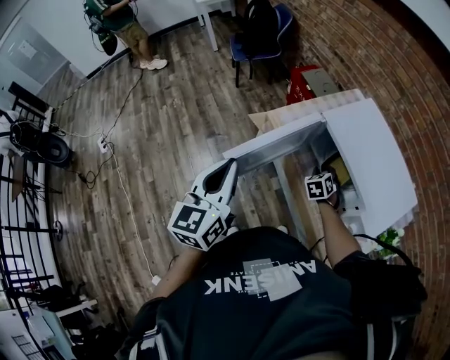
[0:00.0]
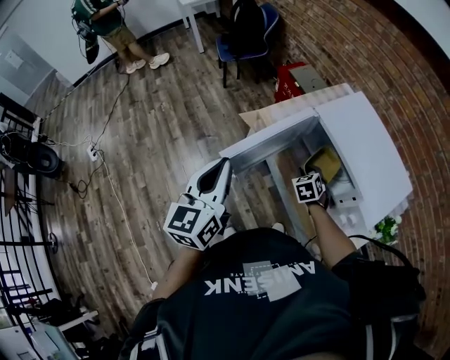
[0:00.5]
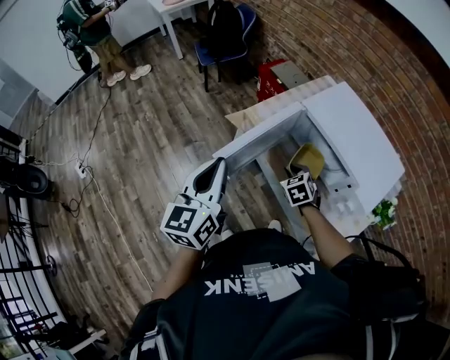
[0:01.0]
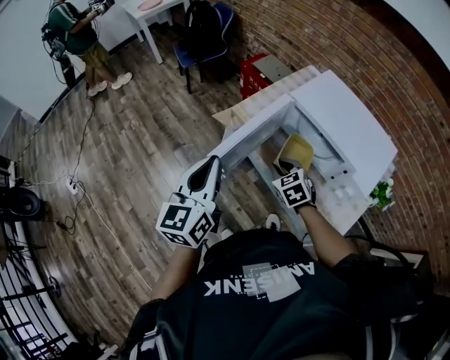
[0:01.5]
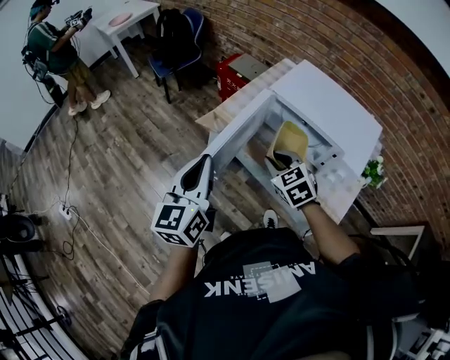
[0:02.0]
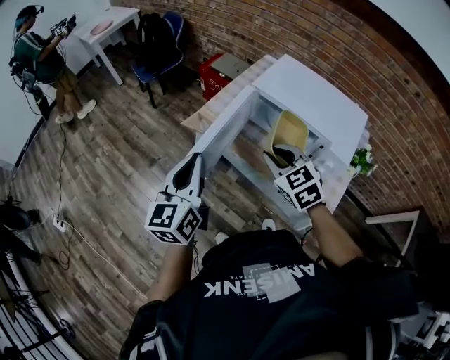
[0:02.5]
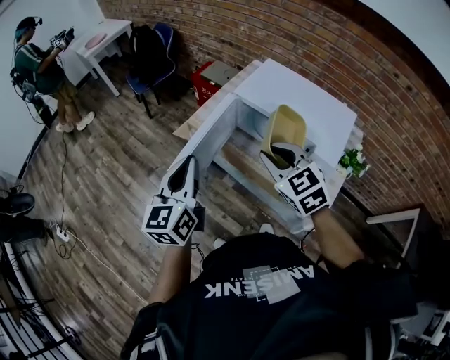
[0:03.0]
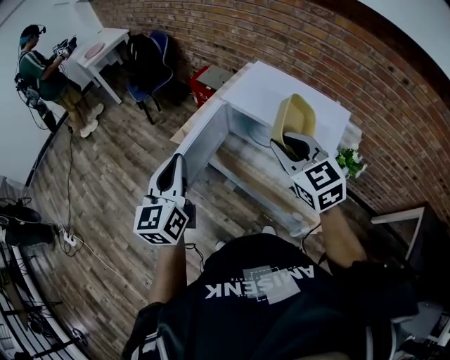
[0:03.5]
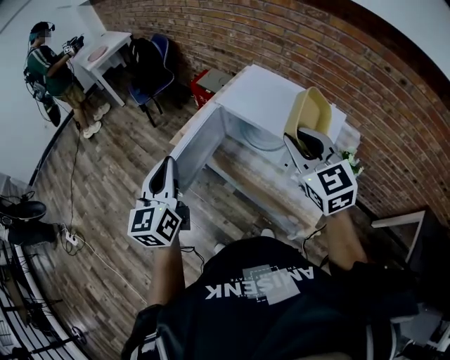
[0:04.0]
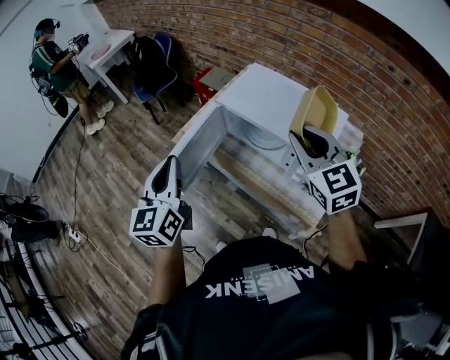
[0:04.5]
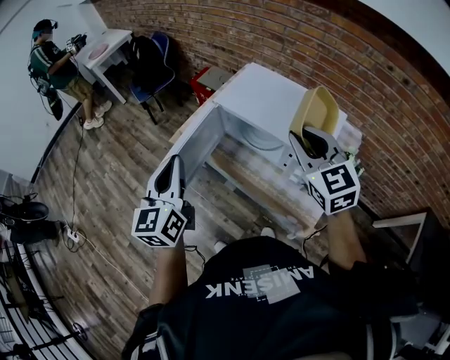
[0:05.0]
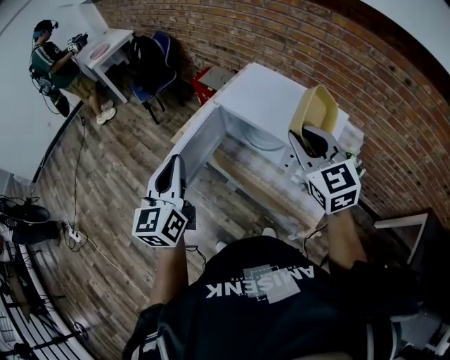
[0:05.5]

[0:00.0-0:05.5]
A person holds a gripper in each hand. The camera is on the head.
0:00.0 to 0:02.0: The right gripper shifts approximately 25 cm upward, backward and to the left.
0:02.0 to 0:03.5: The right gripper moves upward and to the right, approximately 25 cm. The left gripper heads to the right, covering approximately 10 cm.
0:03.5 to 0:05.5: The right gripper is displaced to the right by some 10 cm.

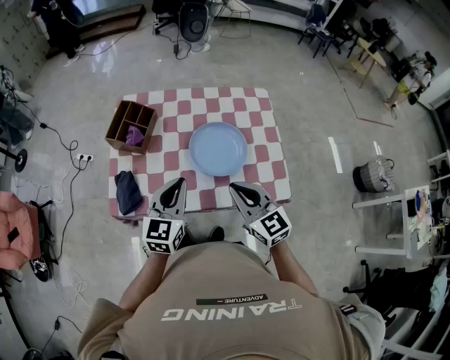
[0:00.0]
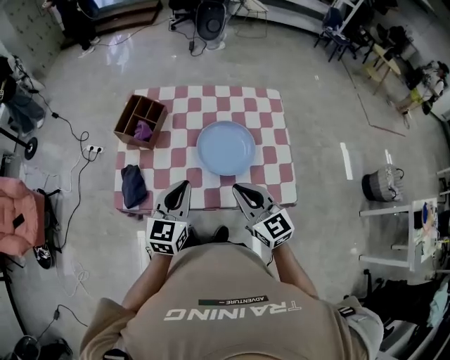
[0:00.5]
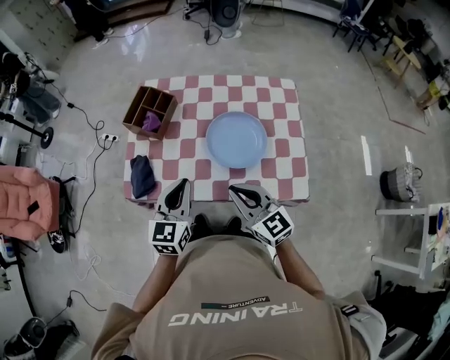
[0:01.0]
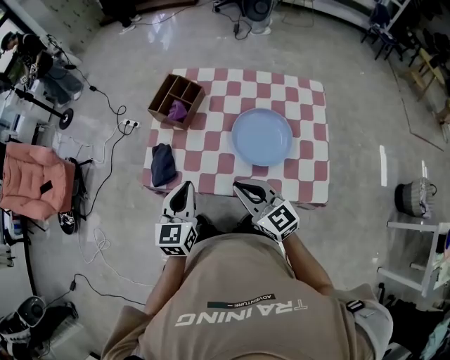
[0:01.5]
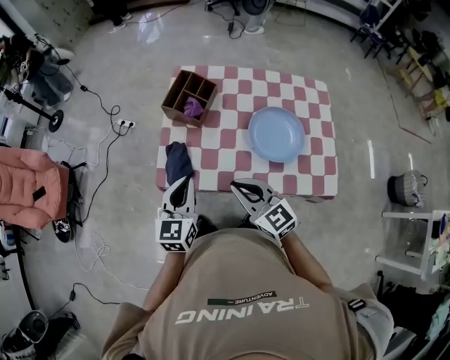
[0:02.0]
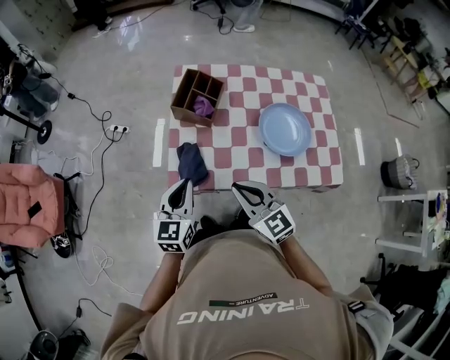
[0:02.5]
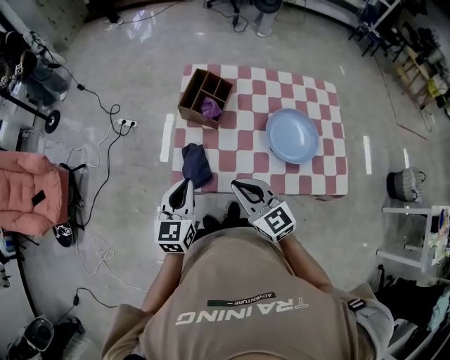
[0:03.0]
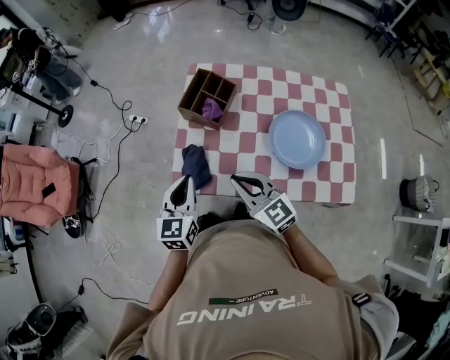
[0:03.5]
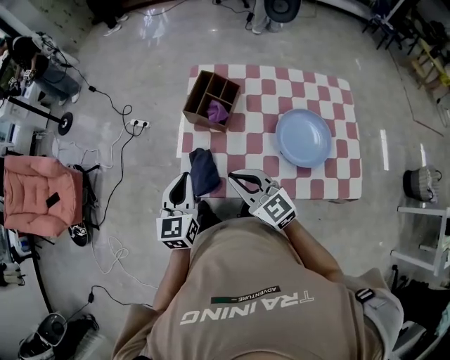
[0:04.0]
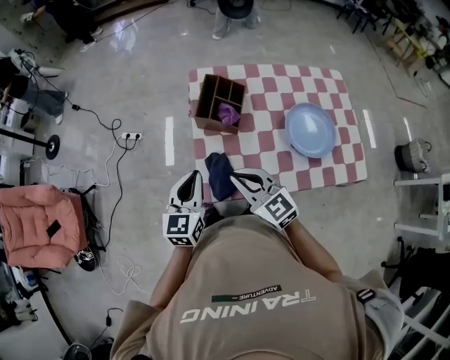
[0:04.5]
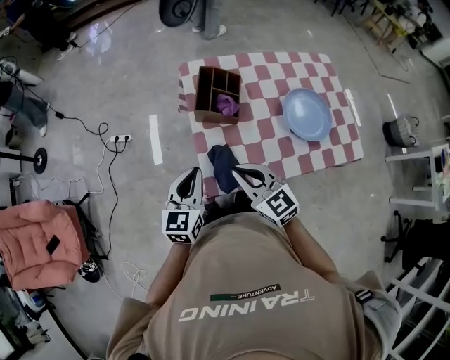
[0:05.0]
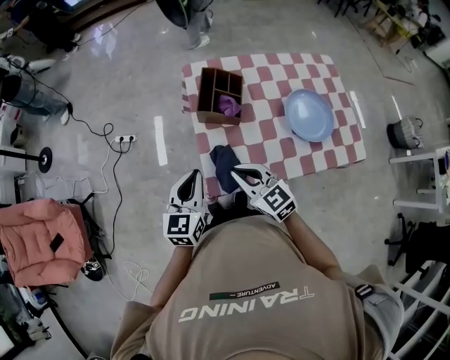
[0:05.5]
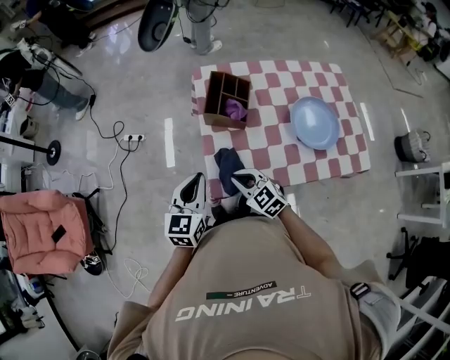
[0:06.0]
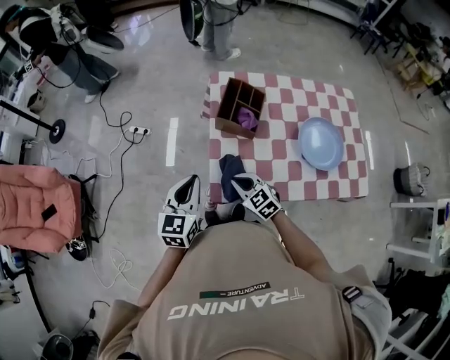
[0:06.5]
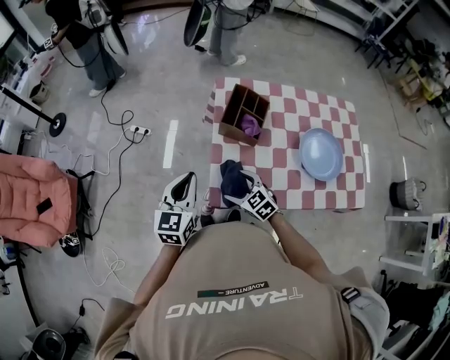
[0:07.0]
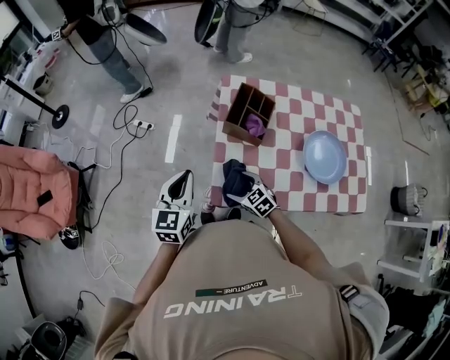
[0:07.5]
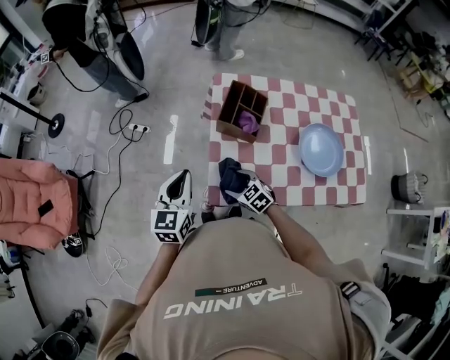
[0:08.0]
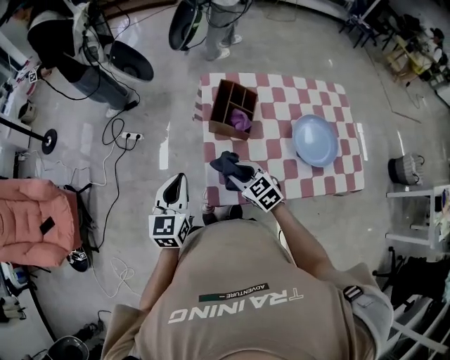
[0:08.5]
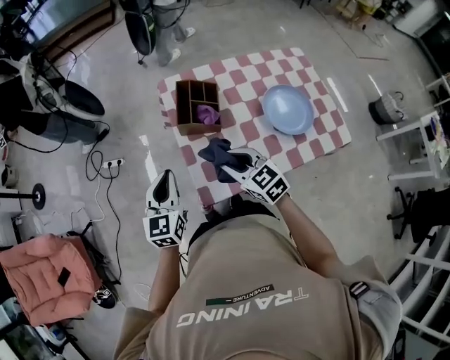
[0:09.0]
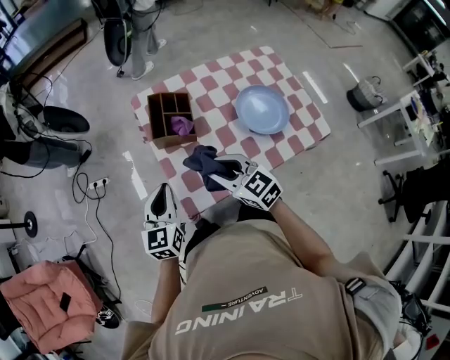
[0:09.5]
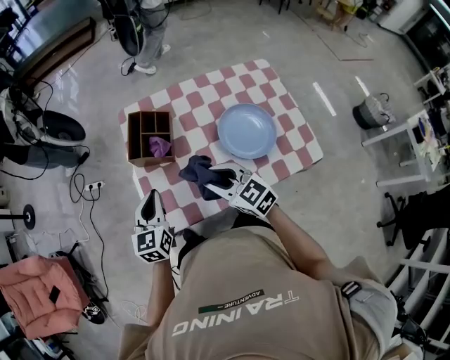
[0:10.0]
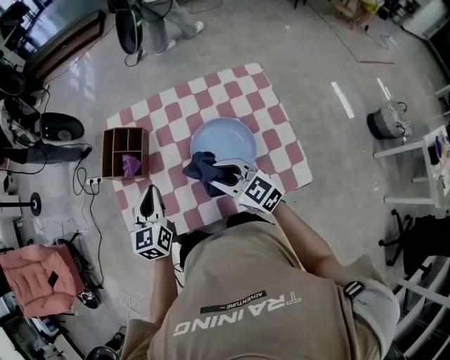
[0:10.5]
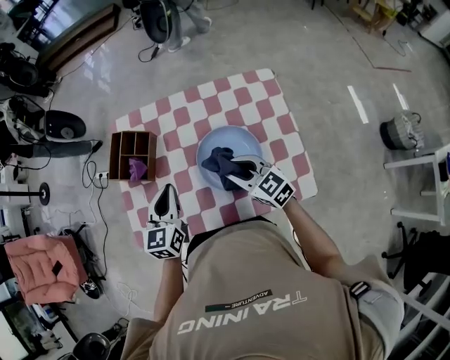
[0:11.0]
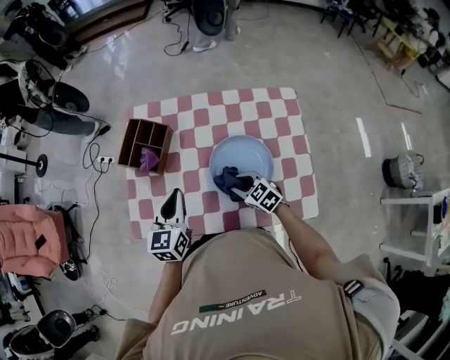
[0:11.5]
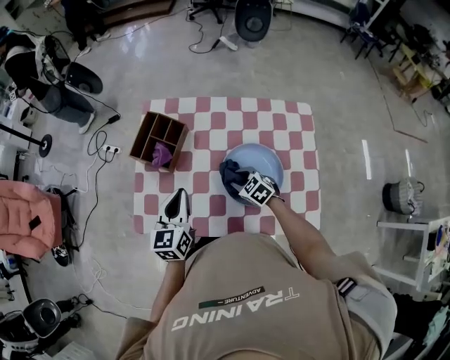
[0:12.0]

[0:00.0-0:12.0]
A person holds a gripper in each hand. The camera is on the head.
0:00.0 to 0:02.0: Both grippers travel together to the left, roughly 15 cm.
0:02.0 to 0:04.0: Both grippers move forward and to the left, some 10 cm.
0:04.0 to 0:06.0: The left gripper is displaced to the left by approximately 10 cm; the right gripper travels downward and to the left by approximately 15 cm, and swivels some 20 degrees.
0:06.0 to 0:08.0: The left gripper ends up roughly 5 cm from where it was. The right gripper travels downward by about 10 cm, and opens.
0:08.0 to 0:10.0: The left gripper is displaced to the right by roughly 15 cm; the right gripper goes about 25 cm upward and to the right, swivels approximately 30 degrees, and closes up.
0:10.0 to 0:12.0: The right gripper heads to the right and downward, covering about 25 cm, and changes its angle by some 30 degrees; the left gripper heads to the right, covering about 15 cm.

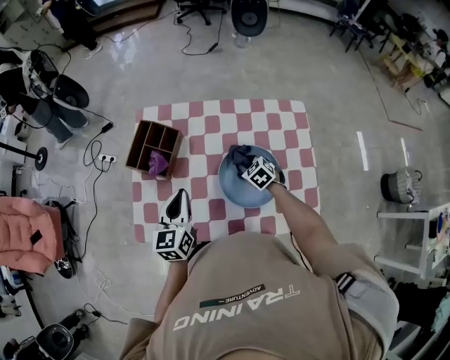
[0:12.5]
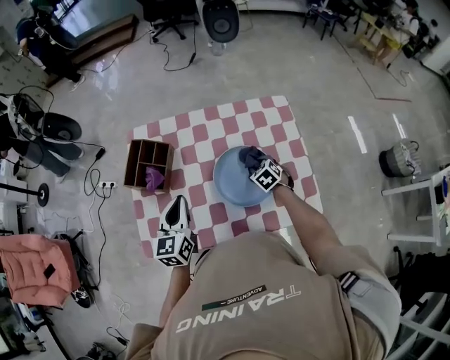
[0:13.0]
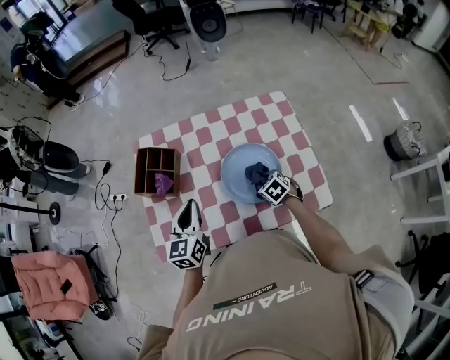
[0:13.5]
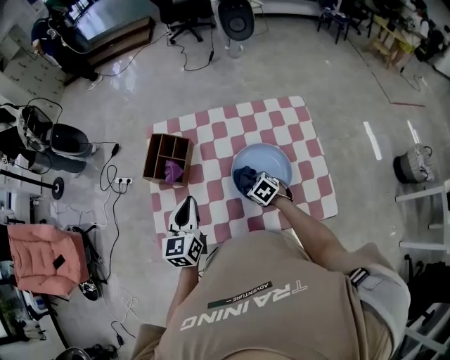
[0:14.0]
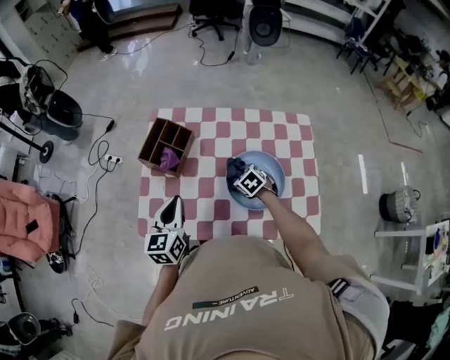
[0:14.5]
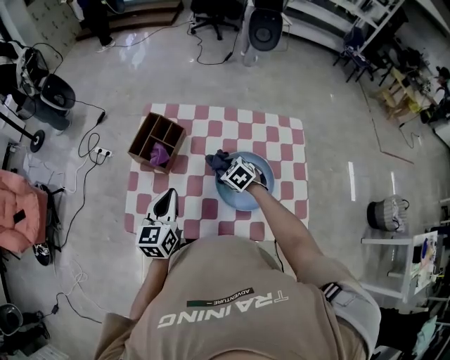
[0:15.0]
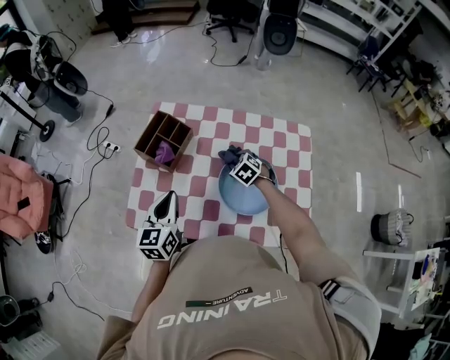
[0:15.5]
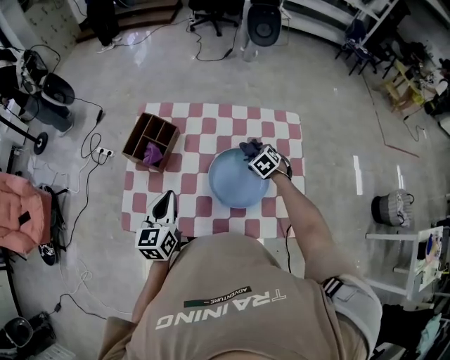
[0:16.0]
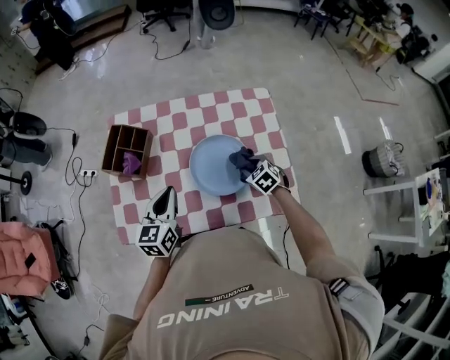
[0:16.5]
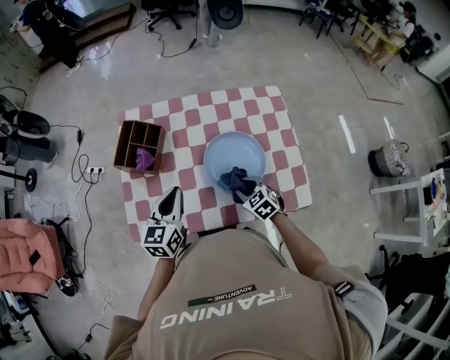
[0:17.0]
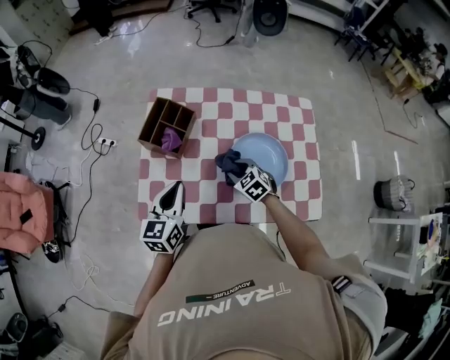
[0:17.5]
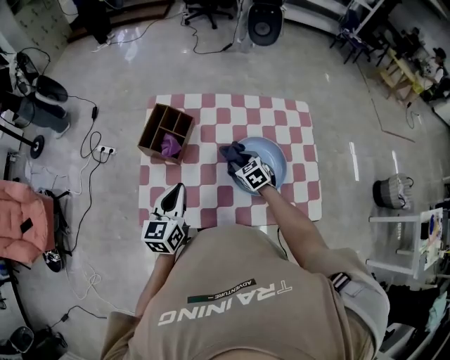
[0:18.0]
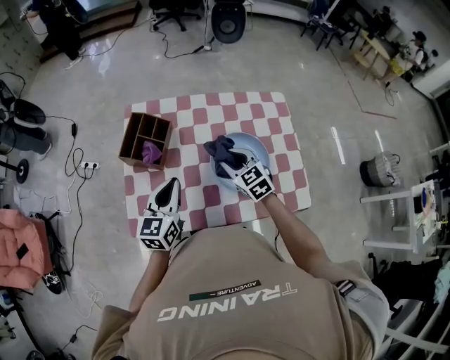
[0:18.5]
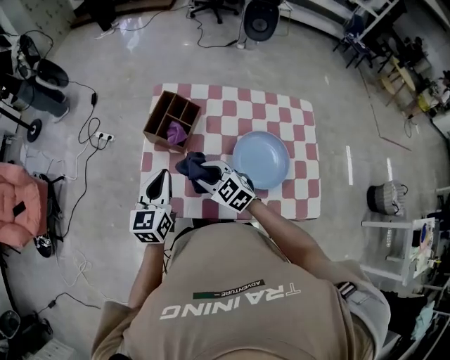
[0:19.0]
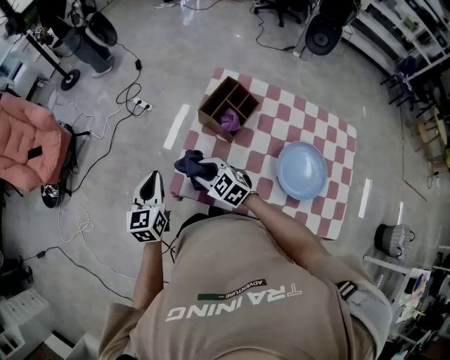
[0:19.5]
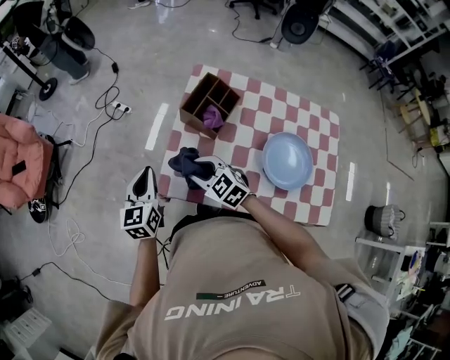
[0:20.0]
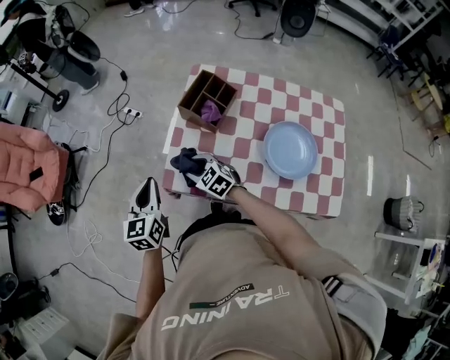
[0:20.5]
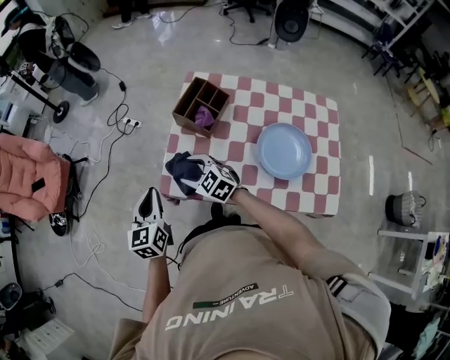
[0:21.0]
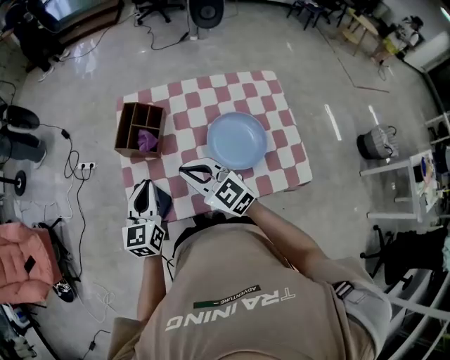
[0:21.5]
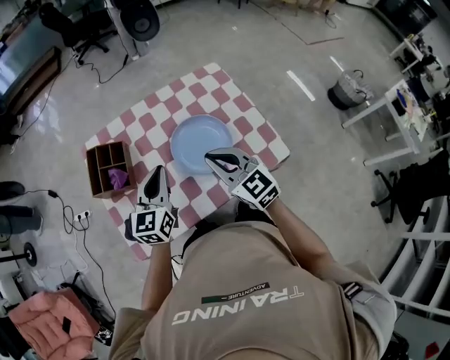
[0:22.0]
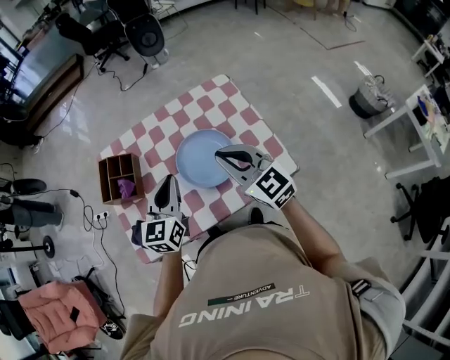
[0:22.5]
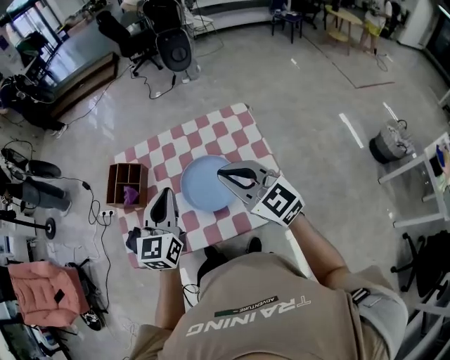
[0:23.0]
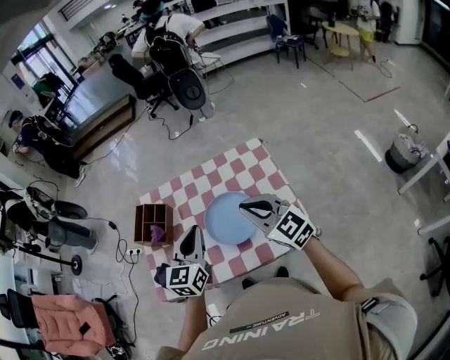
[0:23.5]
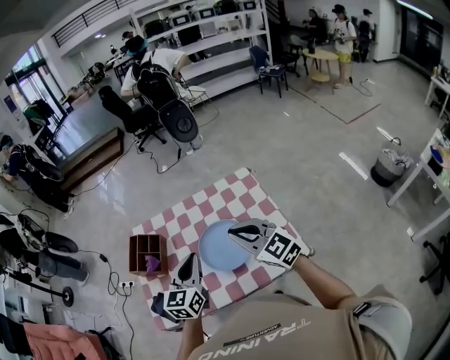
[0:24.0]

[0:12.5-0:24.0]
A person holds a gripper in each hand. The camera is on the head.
0:12.5 to 0:14.5: The grippers both shift to the left by roughly 5 cm.
0:14.5 to 0:16.5: The right gripper travels to the right and backward by about 20 cm. The left gripper is displaced to the right by approximately 10 cm.
0:16.5 to 0:18.5: The right gripper goes approximately 20 cm to the left and upward, and turns by roughly 20 degrees. The left gripper travels to the left by approximately 5 cm.
0:18.5 to 0:20.0: The right gripper moves approximately 30 cm, and swivels roughly 40 degrees. The left gripper ends up approximately 25 cm from where it was, and rotates approximately 30 degrees.
0:20.0 to 0:22.0: The left gripper ends up roughly 35 cm from where it was, and changes its angle by roughly 50 degrees. Meanwhile the right gripper ends up some 35 cm from where it was, and rotates approximately 60 degrees.
0:22.0 to 0:24.0: The grippers both shift to the right and upward by some 10 cm.
